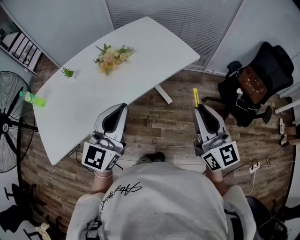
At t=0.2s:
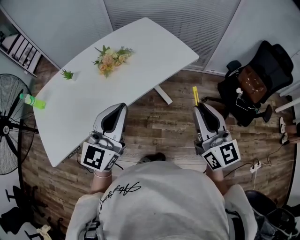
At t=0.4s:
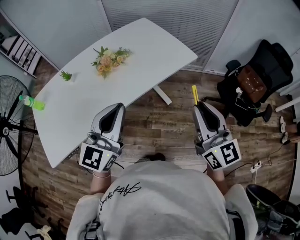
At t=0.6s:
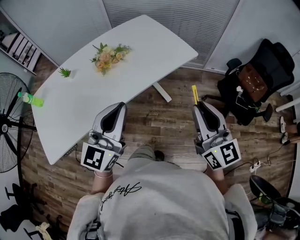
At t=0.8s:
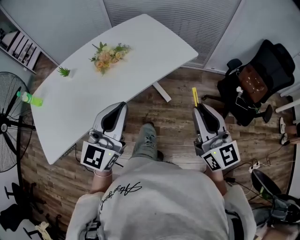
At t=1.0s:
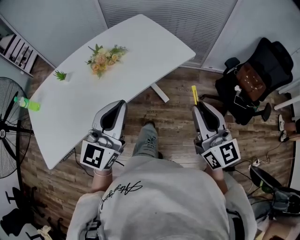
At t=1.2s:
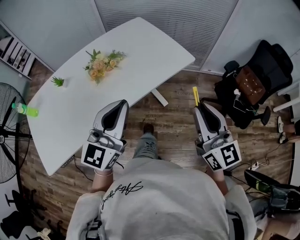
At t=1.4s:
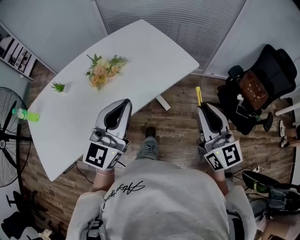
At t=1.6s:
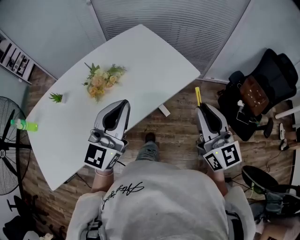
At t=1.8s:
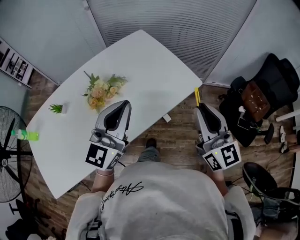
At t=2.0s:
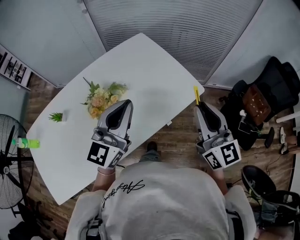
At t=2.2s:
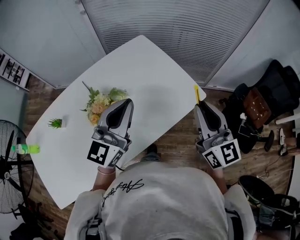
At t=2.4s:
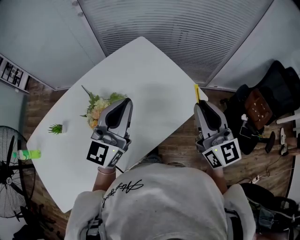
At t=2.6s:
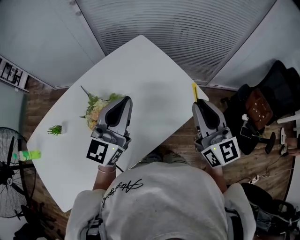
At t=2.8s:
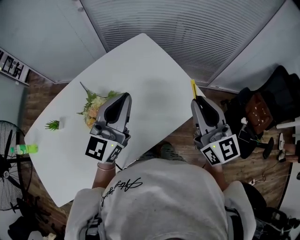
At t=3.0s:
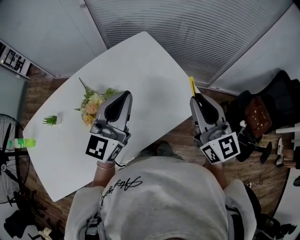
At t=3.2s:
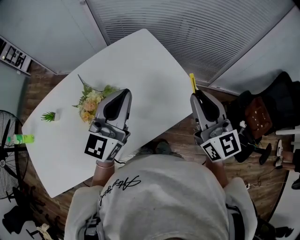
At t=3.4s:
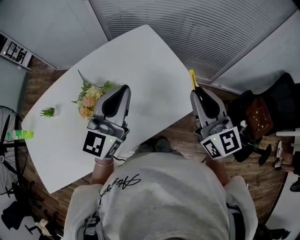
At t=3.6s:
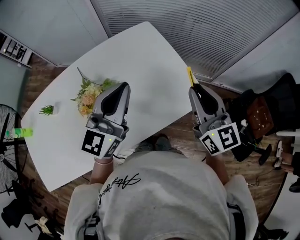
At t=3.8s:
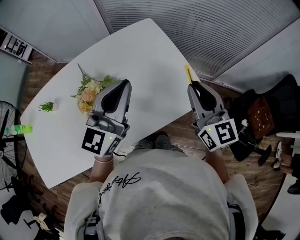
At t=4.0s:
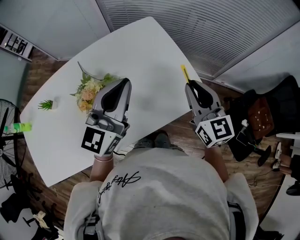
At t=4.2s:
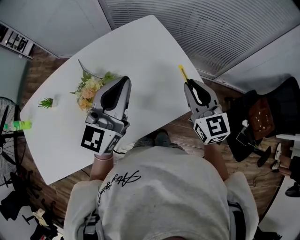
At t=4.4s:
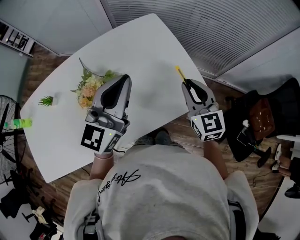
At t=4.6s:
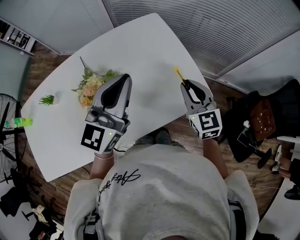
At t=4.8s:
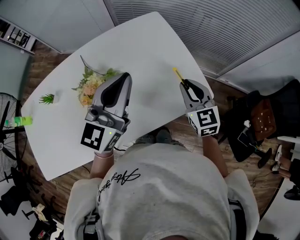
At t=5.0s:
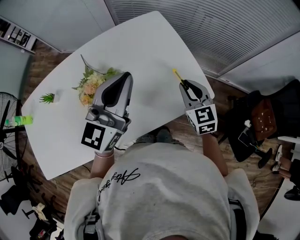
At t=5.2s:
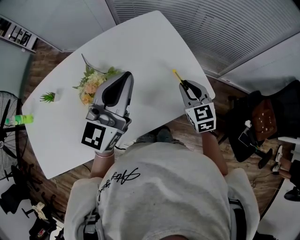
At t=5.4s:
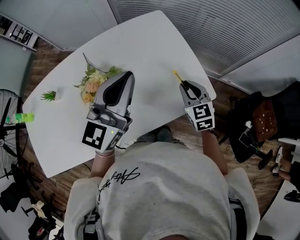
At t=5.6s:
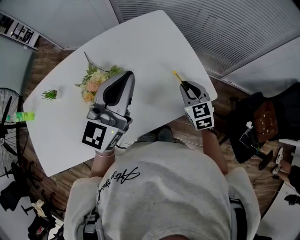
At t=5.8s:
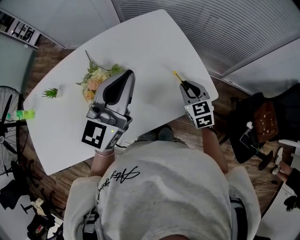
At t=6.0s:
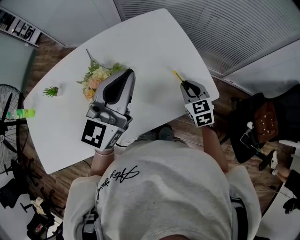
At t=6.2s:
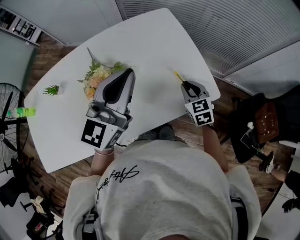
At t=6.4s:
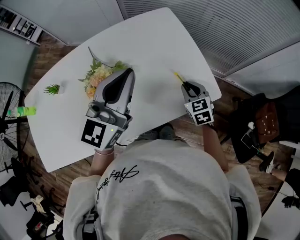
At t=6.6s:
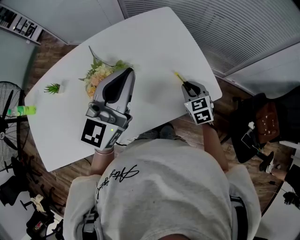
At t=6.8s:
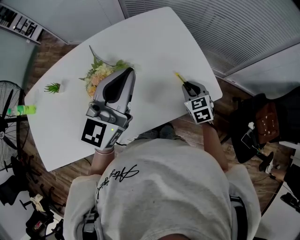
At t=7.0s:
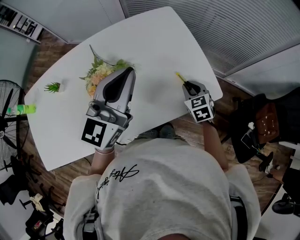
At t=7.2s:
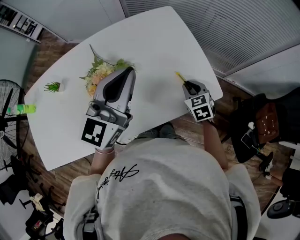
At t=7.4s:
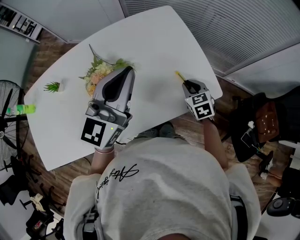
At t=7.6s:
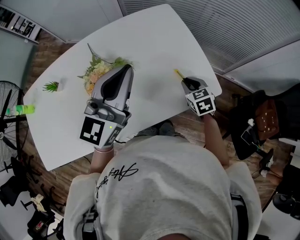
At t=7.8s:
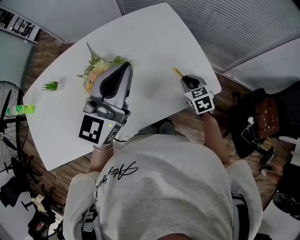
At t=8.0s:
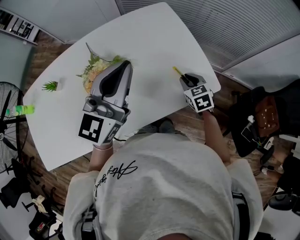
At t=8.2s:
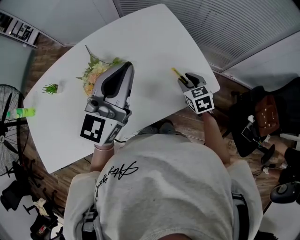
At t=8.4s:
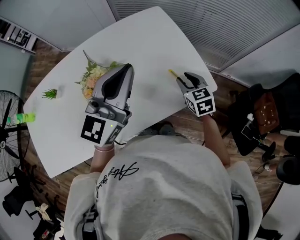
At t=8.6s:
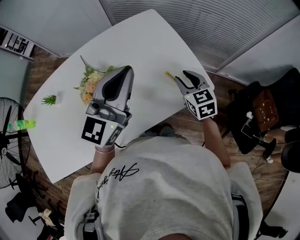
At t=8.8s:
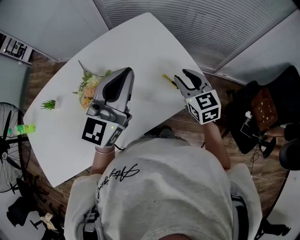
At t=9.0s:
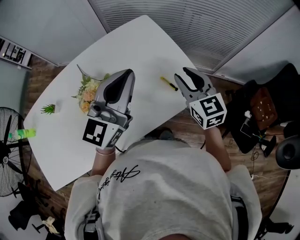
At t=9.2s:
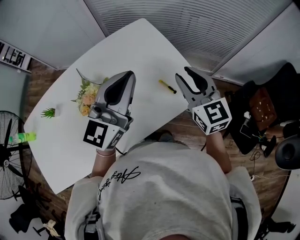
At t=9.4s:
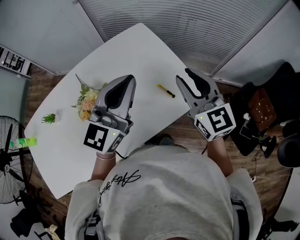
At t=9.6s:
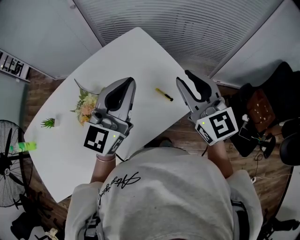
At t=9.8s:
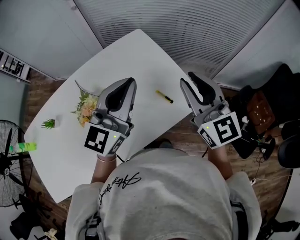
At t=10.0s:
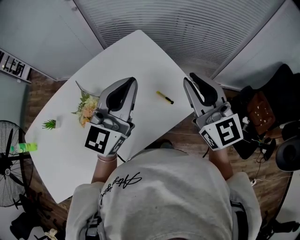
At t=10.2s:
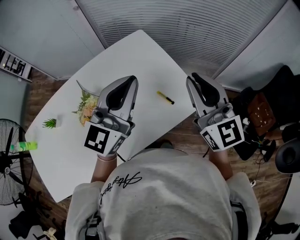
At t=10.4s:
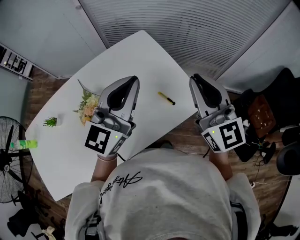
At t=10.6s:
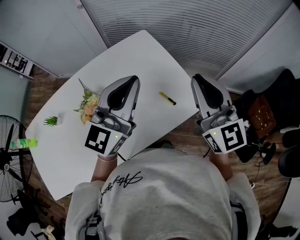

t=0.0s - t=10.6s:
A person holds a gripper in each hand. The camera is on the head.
t=0.0s - t=1.6s: Both grippers move forward, some 15 cm.
t=1.6s - t=3.0s: Both grippers travel together forward, some 20 cm.
t=3.0s - t=4.6s: The right gripper moves downward and forward, roughly 15 cm, and changes its angle by some 20 degrees.
t=4.6s - t=6.0s: The right gripper heads downward, covering some 10 cm.
t=6.0s - t=7.6s: The grippers stay close to where they were, moving slightly.
t=7.6s - t=9.0s: The right gripper moves upward, some 20 cm, and changes its angle by approximately 30 degrees; the left gripper shifts by about 5 cm.
t=9.0s - t=10.6s: The right gripper heads upward, covering some 15 cm, rotates approximately 20 degrees, and closes.

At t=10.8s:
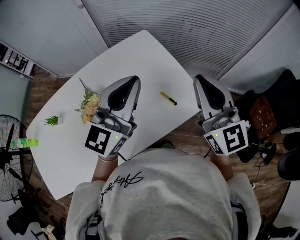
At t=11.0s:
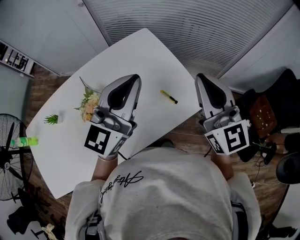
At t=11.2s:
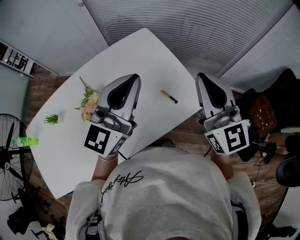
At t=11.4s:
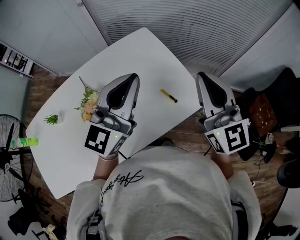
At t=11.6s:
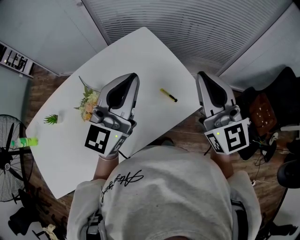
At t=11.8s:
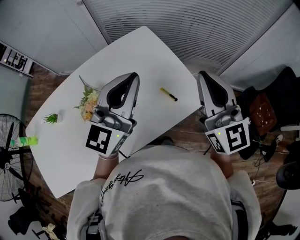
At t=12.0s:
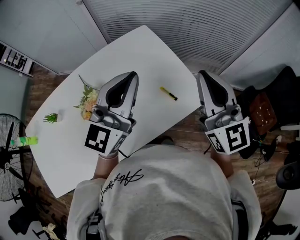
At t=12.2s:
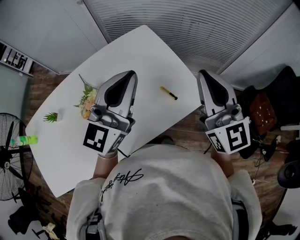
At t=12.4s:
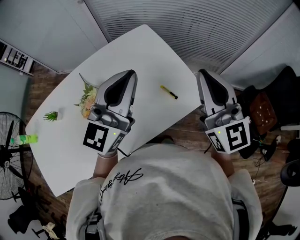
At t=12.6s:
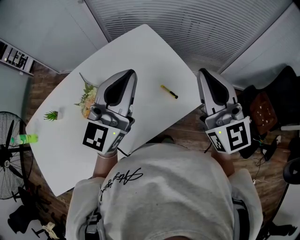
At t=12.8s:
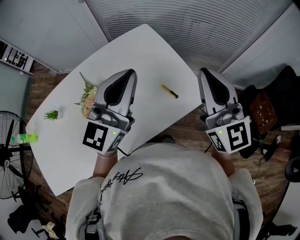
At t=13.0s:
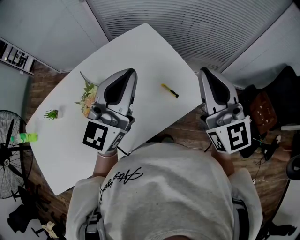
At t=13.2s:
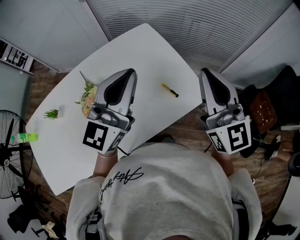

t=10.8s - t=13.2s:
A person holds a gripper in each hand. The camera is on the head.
t=10.8s - t=12.0s: The two grippers keep their place.
t=12.0s - t=13.2s: Both grippers stay put.

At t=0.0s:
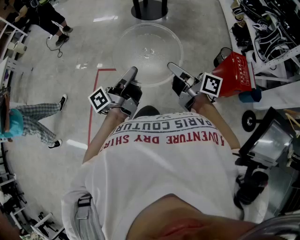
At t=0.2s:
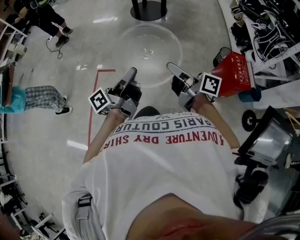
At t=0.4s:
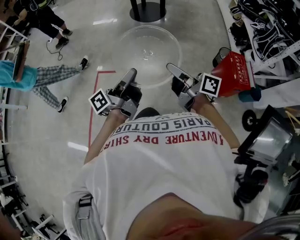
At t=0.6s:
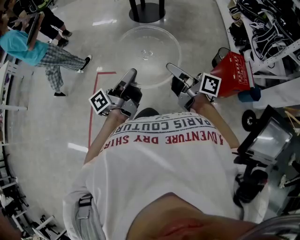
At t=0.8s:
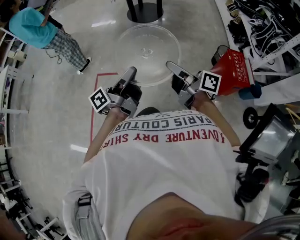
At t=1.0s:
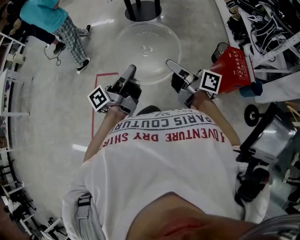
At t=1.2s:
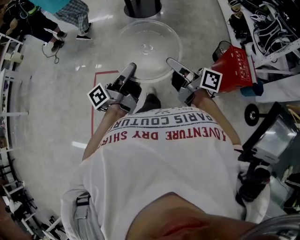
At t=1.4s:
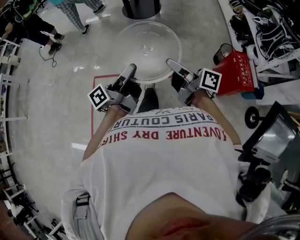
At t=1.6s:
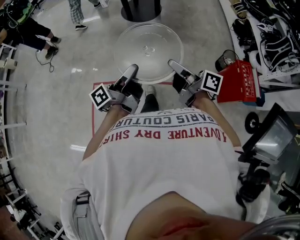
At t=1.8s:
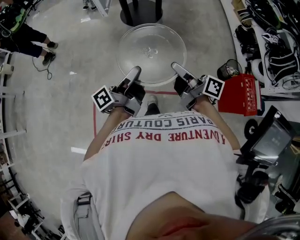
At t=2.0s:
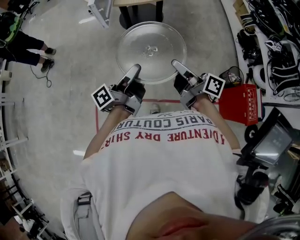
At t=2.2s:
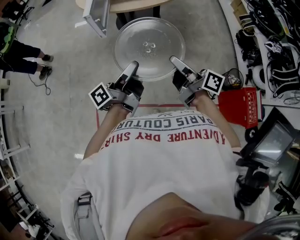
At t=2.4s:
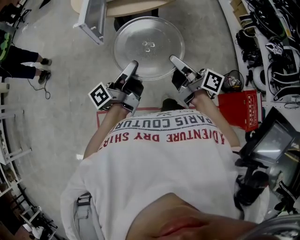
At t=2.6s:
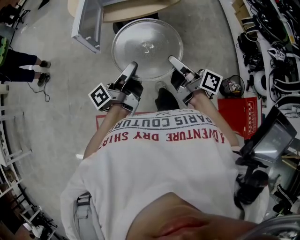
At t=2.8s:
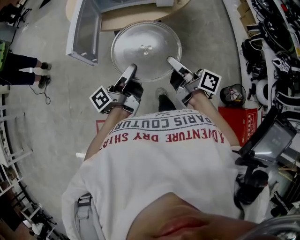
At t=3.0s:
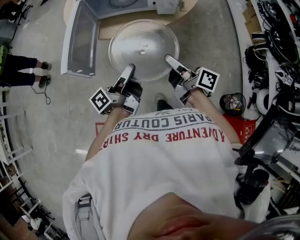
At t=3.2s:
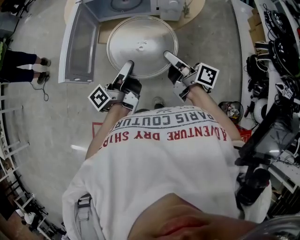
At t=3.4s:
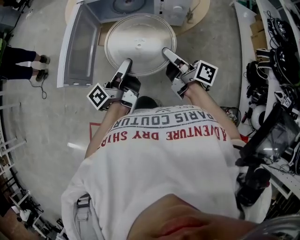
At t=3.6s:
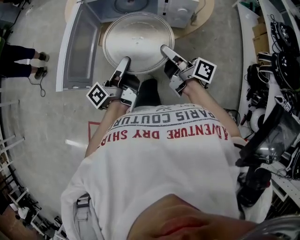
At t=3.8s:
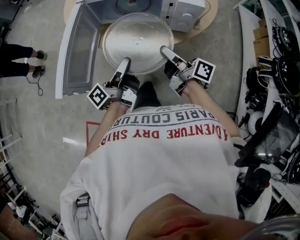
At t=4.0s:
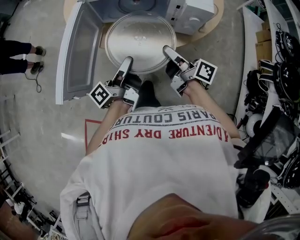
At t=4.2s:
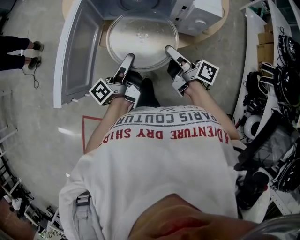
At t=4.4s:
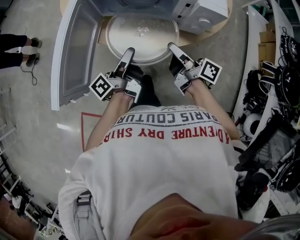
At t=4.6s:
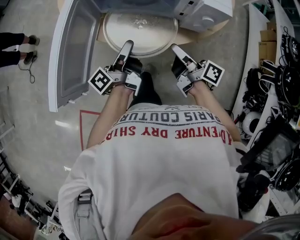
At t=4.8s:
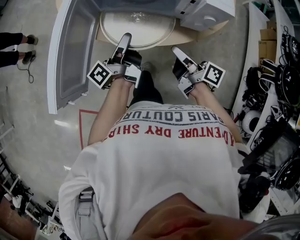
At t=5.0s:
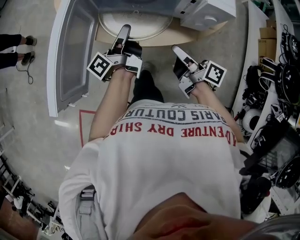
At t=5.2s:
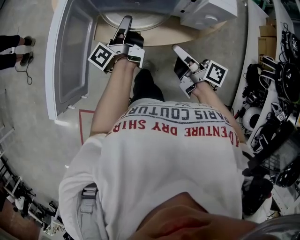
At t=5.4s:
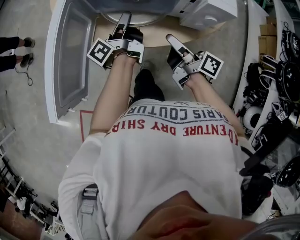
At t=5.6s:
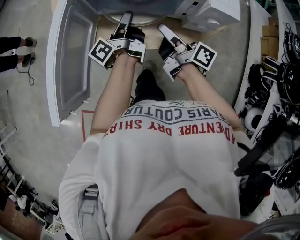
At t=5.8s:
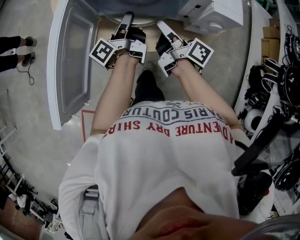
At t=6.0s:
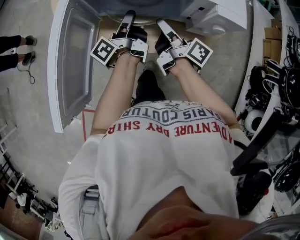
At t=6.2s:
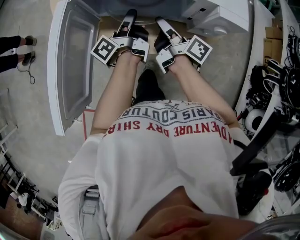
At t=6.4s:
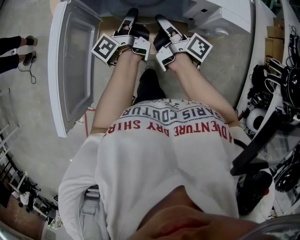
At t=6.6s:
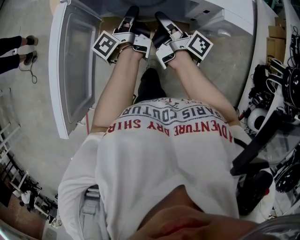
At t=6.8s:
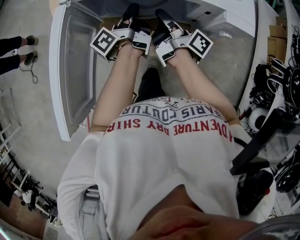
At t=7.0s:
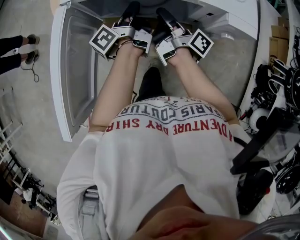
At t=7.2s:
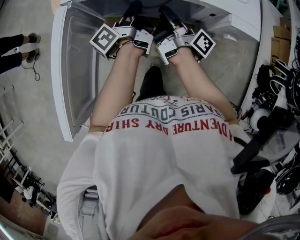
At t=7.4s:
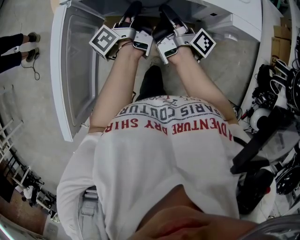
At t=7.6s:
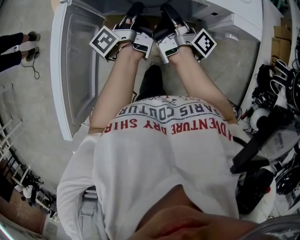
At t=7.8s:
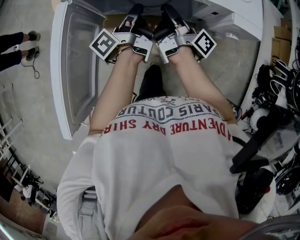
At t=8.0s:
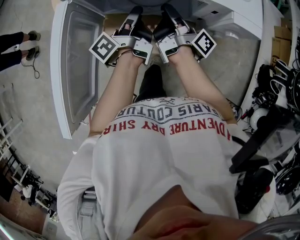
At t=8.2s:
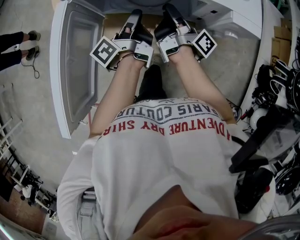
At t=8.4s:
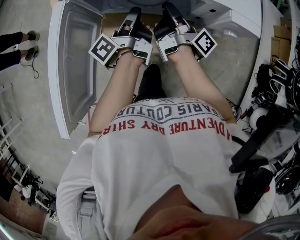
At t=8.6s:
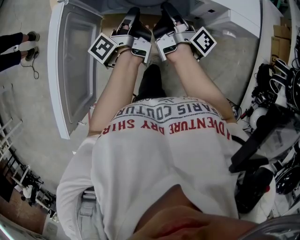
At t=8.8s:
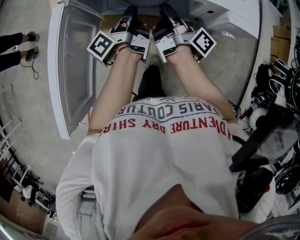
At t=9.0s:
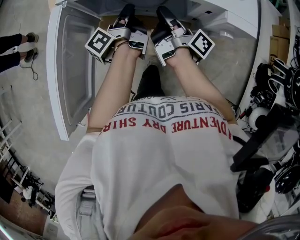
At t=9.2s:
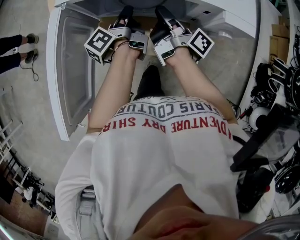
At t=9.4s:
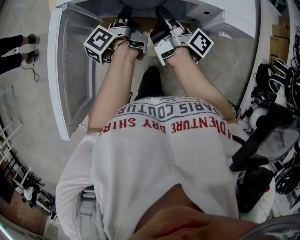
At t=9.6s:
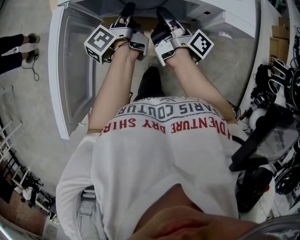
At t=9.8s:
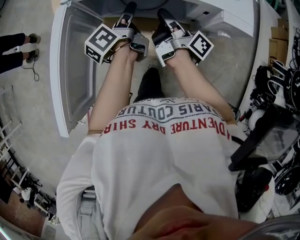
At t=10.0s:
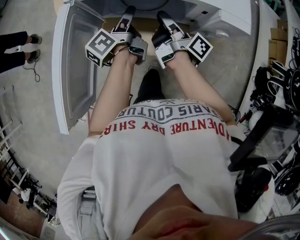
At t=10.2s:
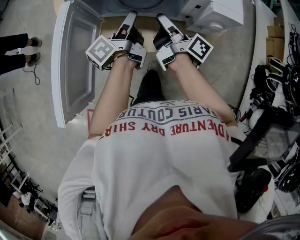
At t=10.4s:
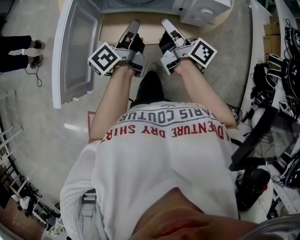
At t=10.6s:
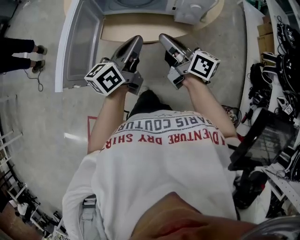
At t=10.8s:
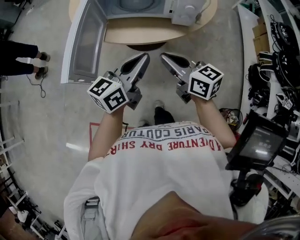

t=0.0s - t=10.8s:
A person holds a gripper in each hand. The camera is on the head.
t=0.0s - t=1.6s: The right gripper moves approximately 25 cm.
t=1.6s - t=3.0s: The right gripper shifts by roughly 70 cm.
t=3.0s - t=4.6s: The right gripper moves roughly 25 cm.
t=4.6s - t=6.2s: The right gripper ends up approximately 15 cm from where it was.
t=9.2s - t=10.8s: The right gripper moves roughly 35 cm, and rotates around the line of its fingers by about 60 degrees, counterclockwise from behind.
